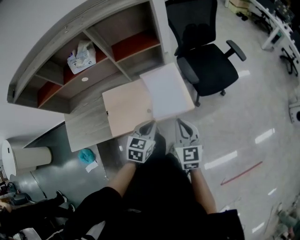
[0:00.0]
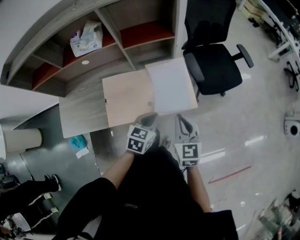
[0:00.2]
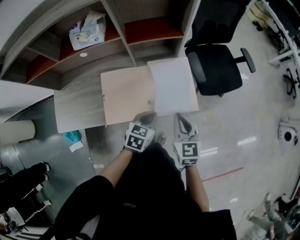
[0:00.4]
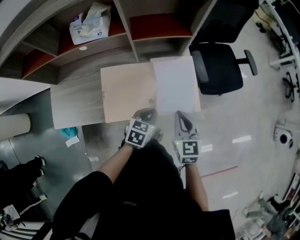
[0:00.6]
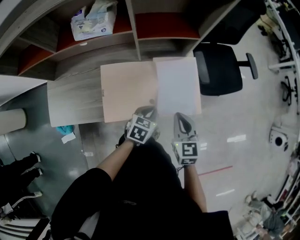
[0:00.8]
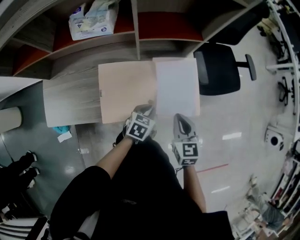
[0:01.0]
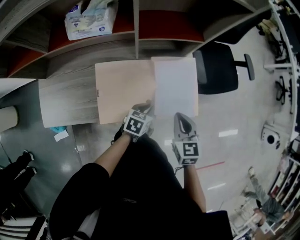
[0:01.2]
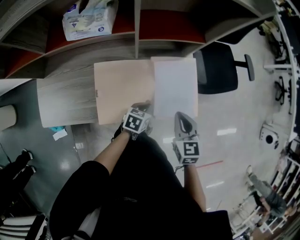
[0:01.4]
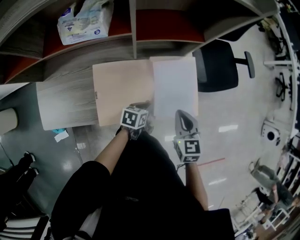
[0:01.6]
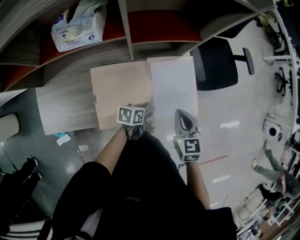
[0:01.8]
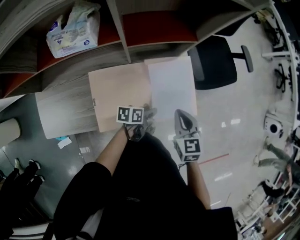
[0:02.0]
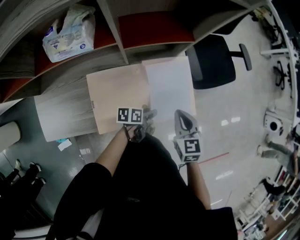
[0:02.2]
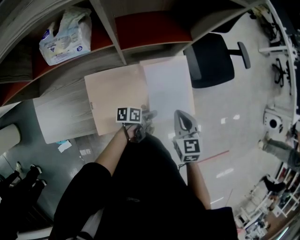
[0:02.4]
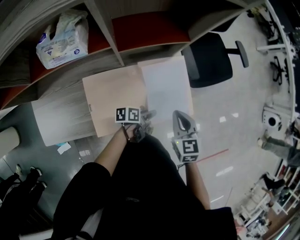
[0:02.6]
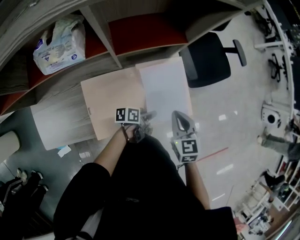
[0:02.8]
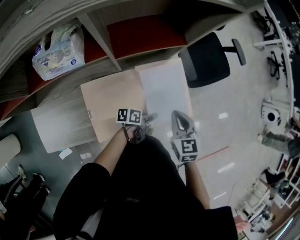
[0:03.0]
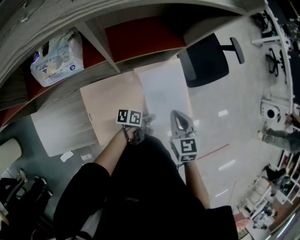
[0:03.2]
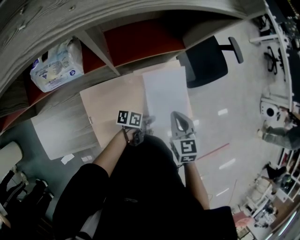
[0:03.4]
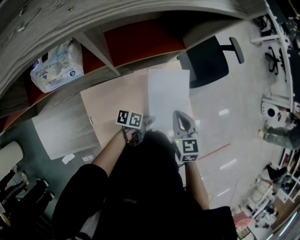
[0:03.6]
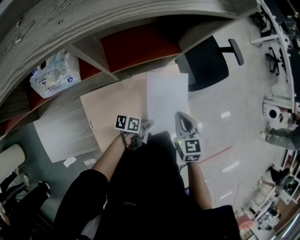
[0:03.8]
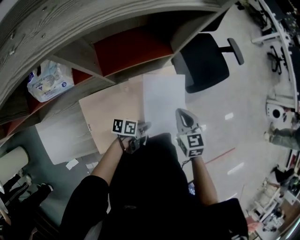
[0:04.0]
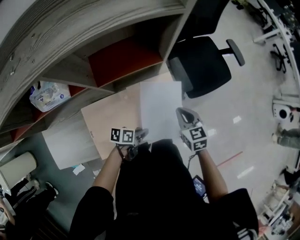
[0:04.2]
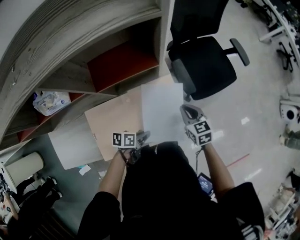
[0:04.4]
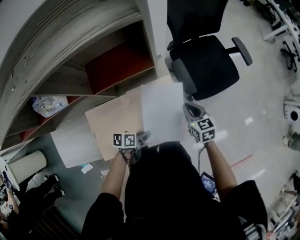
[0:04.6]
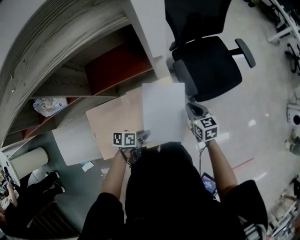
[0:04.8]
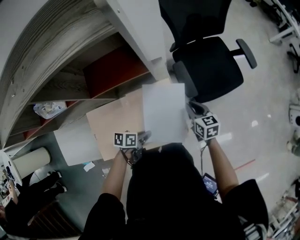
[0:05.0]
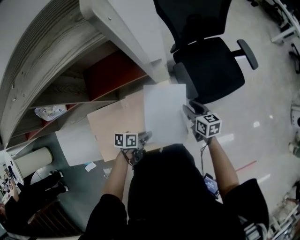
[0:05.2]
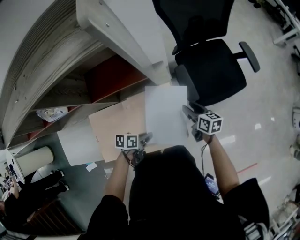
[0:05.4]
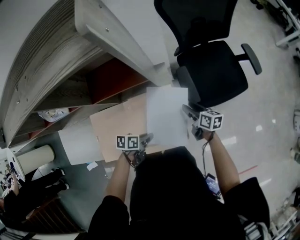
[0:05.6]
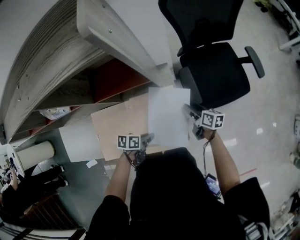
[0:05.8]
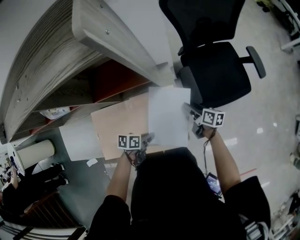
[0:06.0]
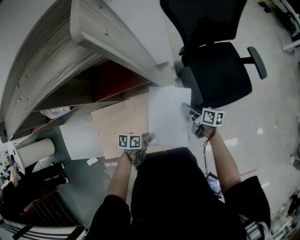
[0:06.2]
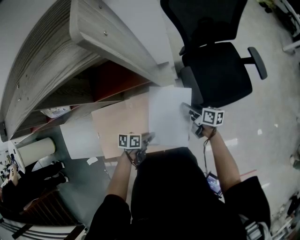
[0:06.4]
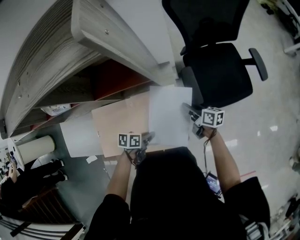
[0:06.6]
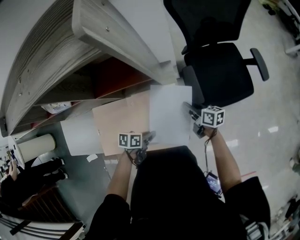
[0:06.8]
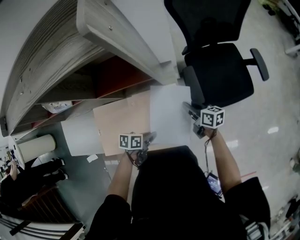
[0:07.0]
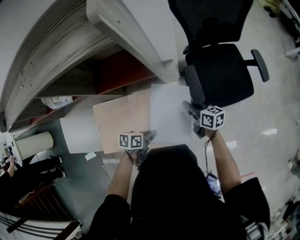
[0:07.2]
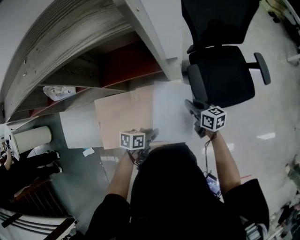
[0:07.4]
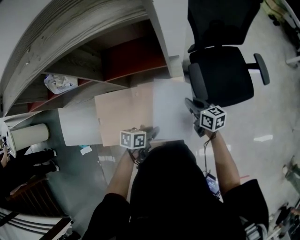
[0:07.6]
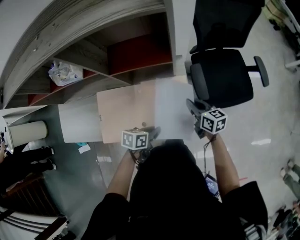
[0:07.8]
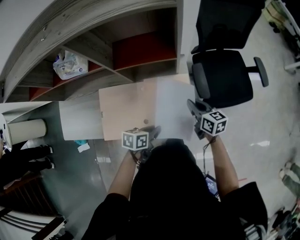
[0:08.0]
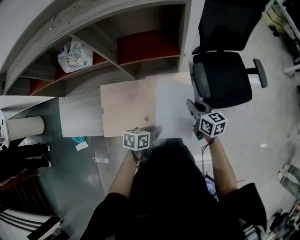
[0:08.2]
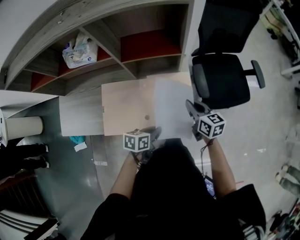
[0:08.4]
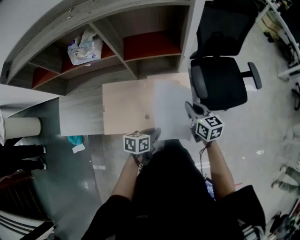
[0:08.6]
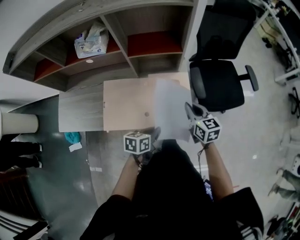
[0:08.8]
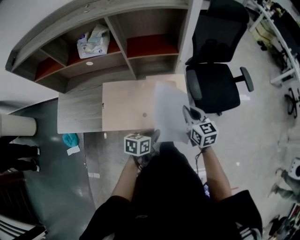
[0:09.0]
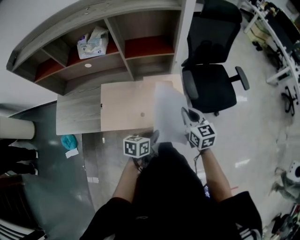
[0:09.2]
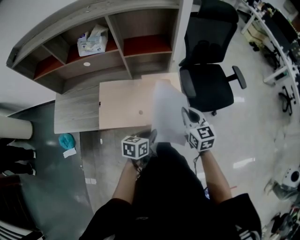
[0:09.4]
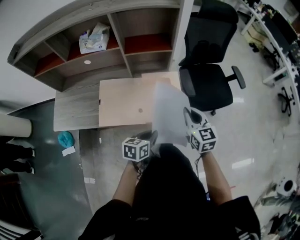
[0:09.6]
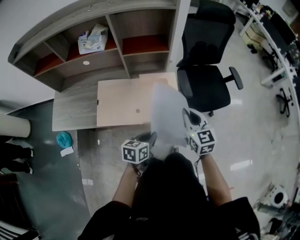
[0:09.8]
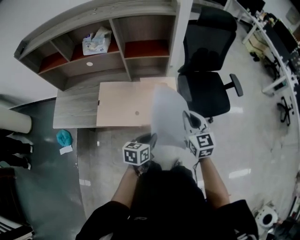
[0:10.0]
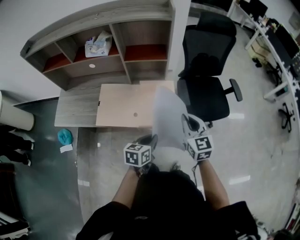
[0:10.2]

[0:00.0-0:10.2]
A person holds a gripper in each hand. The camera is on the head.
0:00.0 to 0:01.4: The right gripper is displaced forward, to the left and downward by approximately 15 cm. Meanwhile the left gripper goes roughly 20 cm downward, forward and to the left, and swivels roughly 30 degrees.
0:01.4 to 0:03.0: The left gripper heads to the right, covering some 5 cm, changes its angle by approximately 40 degrees, and opens up.
0:03.0 to 0:04.4: The right gripper travels forward and downward by approximately 15 cm; the left gripper closes up.
0:04.4 to 0:05.8: The right gripper goes some 15 cm downward and forward, changes its angle by about 40 degrees, and opens up.
0:05.8 to 0:07.2: The right gripper changes place by roughly 5 cm, and closes up.
0:07.2 to 0:08.8: The right gripper moves upward and backward, about 15 cm, and rotates approximately 30 degrees; the left gripper heads backward and upward, covering about 10 cm, and swivels approximately 20 degrees.
0:08.8 to 0:10.2: The left gripper is displaced upward, to the right and backward by approximately 15 cm. The right gripper travels upward, backward and to the right by roughly 15 cm, and rotates roughly 20 degrees.

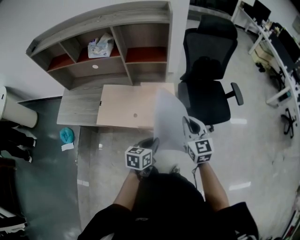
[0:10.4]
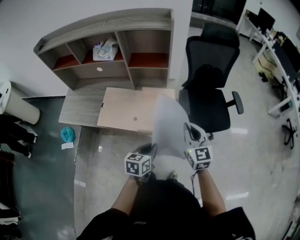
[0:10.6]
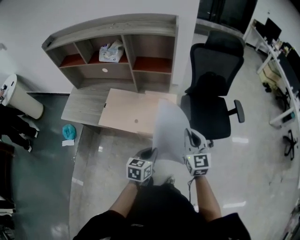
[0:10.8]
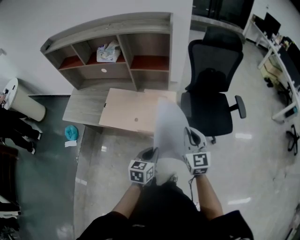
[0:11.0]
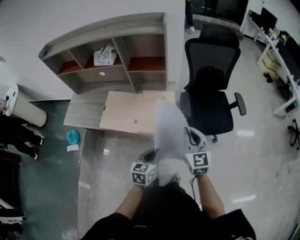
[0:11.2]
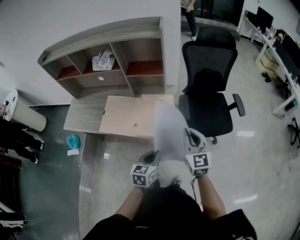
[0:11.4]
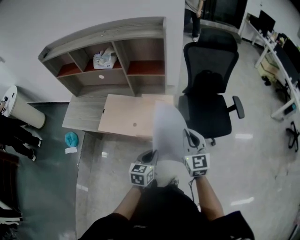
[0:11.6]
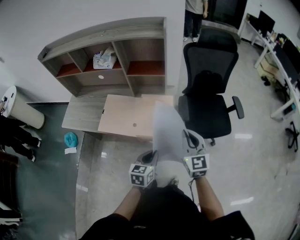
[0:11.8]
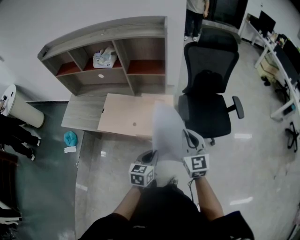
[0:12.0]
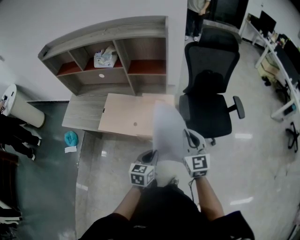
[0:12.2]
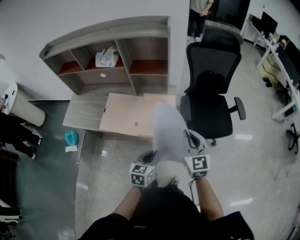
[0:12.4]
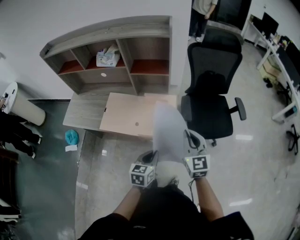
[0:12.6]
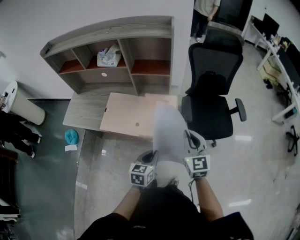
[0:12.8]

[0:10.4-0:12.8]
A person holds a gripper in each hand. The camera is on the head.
0:10.4 to 0:12.8: The grippers move only a little.

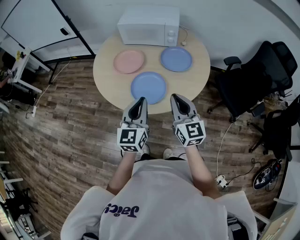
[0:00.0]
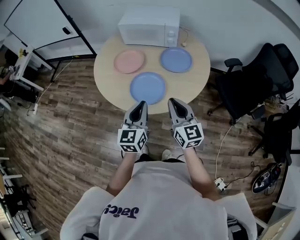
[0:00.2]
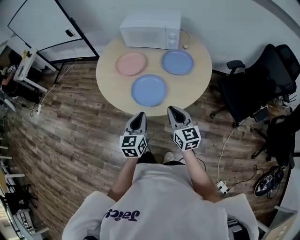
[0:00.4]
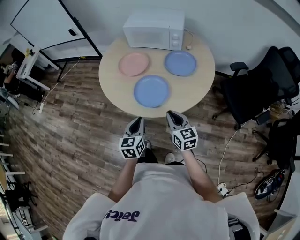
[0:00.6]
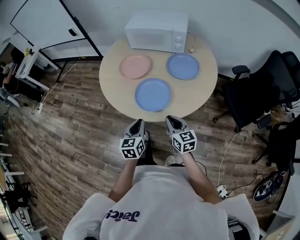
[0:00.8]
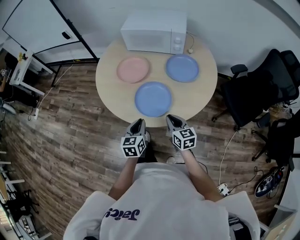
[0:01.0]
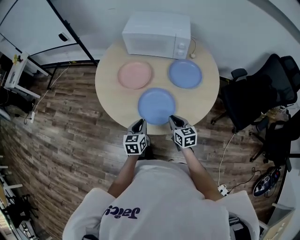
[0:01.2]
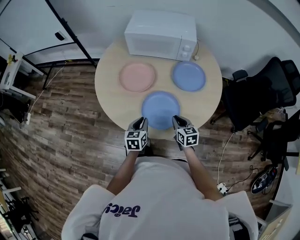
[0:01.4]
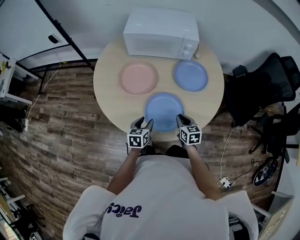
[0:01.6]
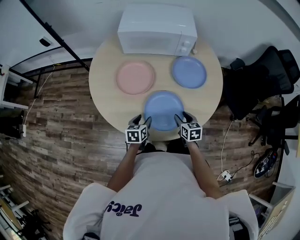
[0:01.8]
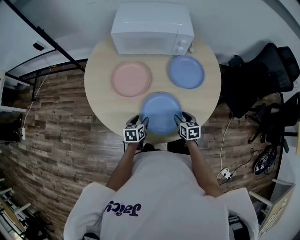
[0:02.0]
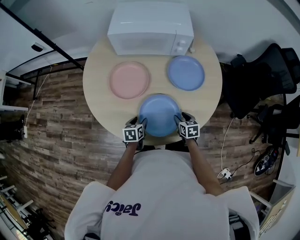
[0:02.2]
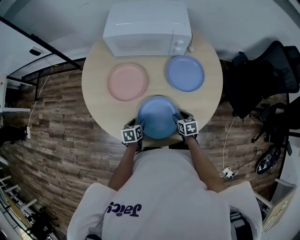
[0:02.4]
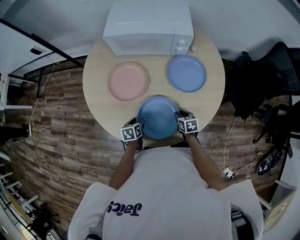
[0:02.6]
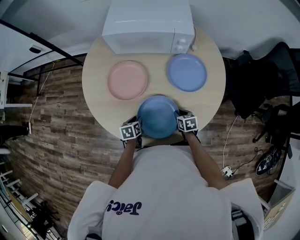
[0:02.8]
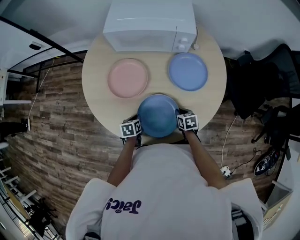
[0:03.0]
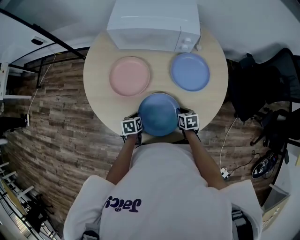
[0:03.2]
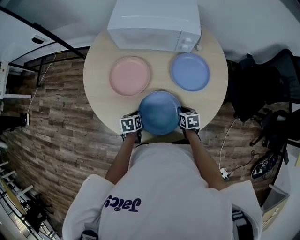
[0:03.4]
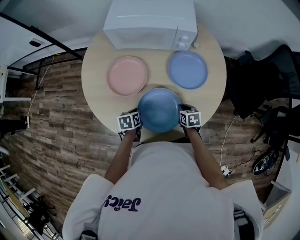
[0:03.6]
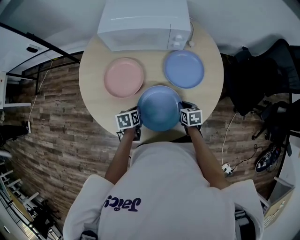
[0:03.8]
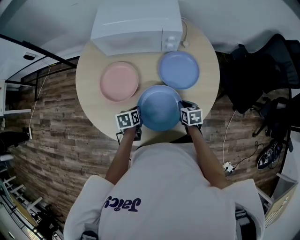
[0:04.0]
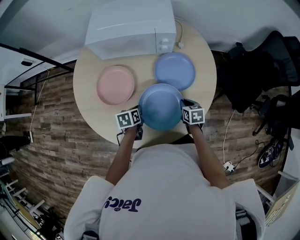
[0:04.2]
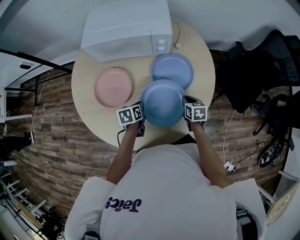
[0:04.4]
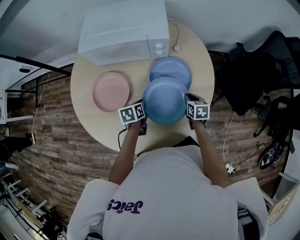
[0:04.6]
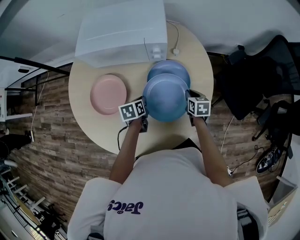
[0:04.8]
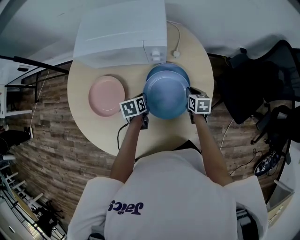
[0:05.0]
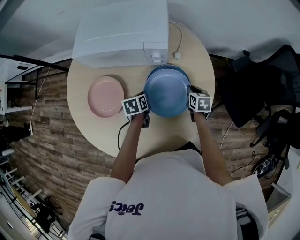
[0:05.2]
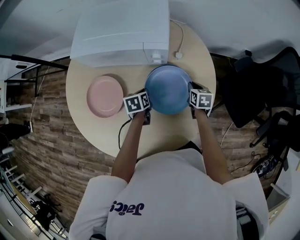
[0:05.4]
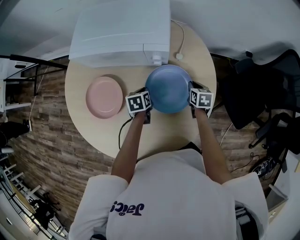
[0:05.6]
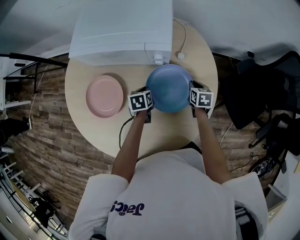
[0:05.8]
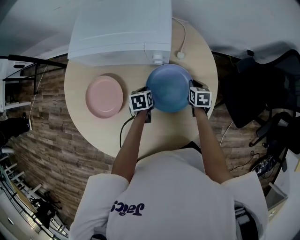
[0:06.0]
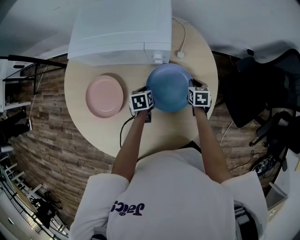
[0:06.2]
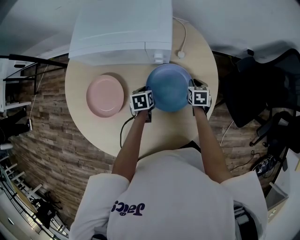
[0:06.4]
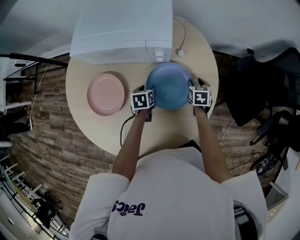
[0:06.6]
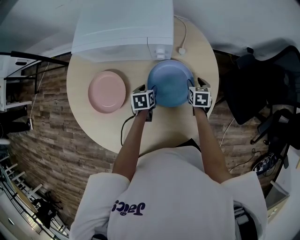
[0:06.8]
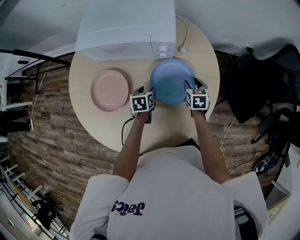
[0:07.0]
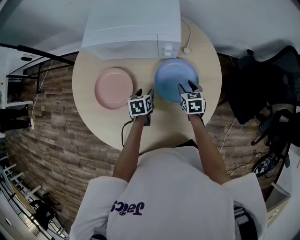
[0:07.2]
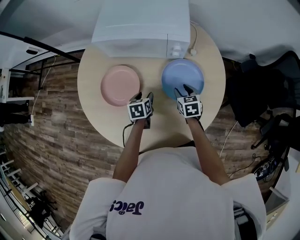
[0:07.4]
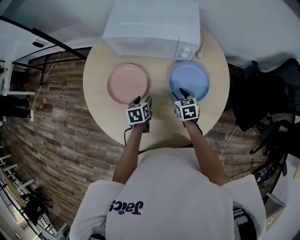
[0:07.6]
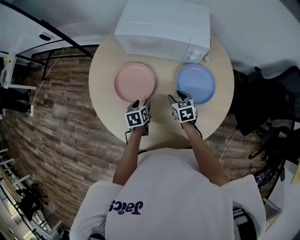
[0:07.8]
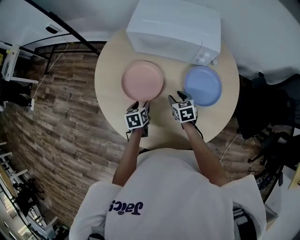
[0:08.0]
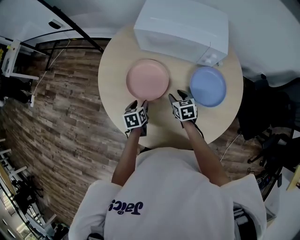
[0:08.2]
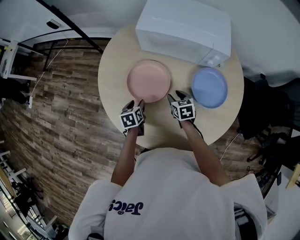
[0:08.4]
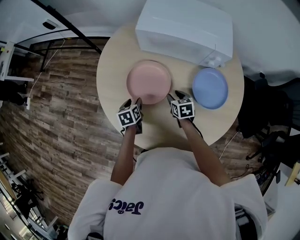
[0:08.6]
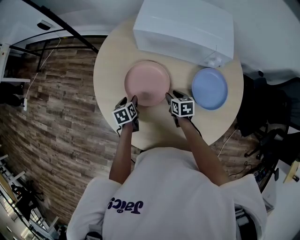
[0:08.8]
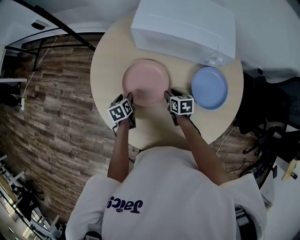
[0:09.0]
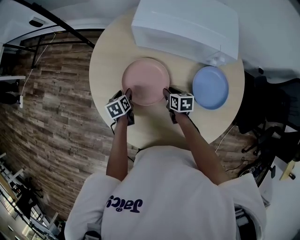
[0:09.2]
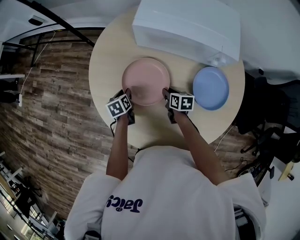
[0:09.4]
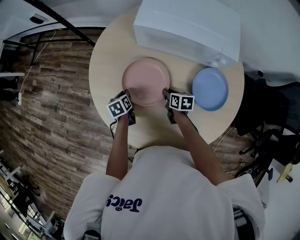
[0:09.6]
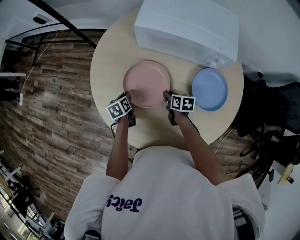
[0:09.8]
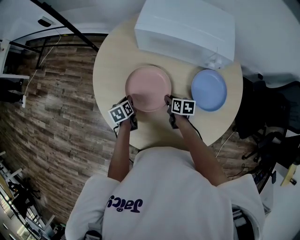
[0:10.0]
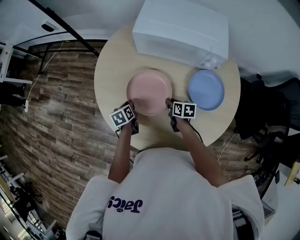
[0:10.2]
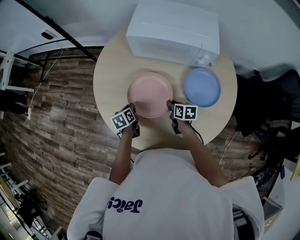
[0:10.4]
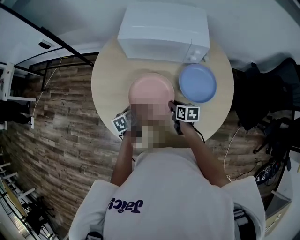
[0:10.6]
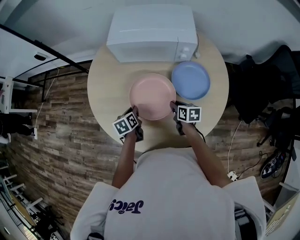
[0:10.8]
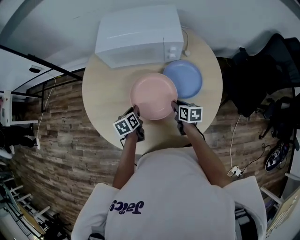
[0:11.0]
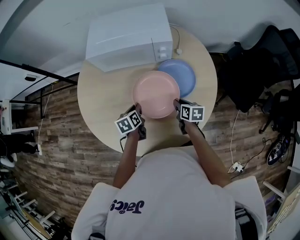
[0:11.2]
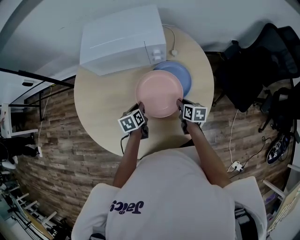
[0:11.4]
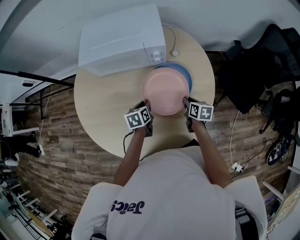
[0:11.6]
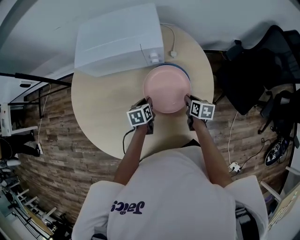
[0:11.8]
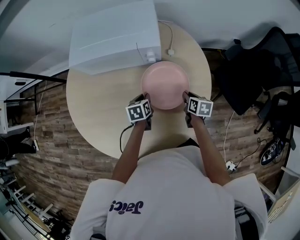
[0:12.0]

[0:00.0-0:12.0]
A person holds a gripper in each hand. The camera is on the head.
0:00.0 to 0:01.6: The grippers both shift downward and forward by some 30 cm. The left gripper tilts its fingers approximately 30 degrees downward, and opens up; the right gripper angles its fingers downward, by some 40 degrees.
0:01.6 to 0:03.0: Both grippers travel together downward and forward, roughly 10 cm. The right gripper turns by roughly 20 degrees, and opens, then closes once more; the left gripper turns by some 20 degrees, and closes up.
0:03.0 to 0:04.4: The grippers both shift to the right, forward and upward by about 15 cm.
0:04.4 to 0:06.0: The right gripper travels forward by approximately 20 cm; the left gripper is displaced forward and to the right by some 15 cm.
0:06.0 to 0:07.6: The right gripper is displaced to the left and backward by some 25 cm, and opens its fingers. The left gripper heads backward and to the left, covering about 15 cm, and opens its fingers.
0:07.6 to 0:09.0: The right gripper moves to the left and downward, some 15 cm, while the left gripper is displaced to the left by approximately 20 cm.
0:09.0 to 0:10.4: Both grippers travel together backward, about 5 cm. The left gripper closes.
0:10.4 to 0:12.0: Both grippers move to the right, roughly 30 cm. The left gripper changes its angle by some 30 degrees. The right gripper changes its angle by about 20 degrees.
